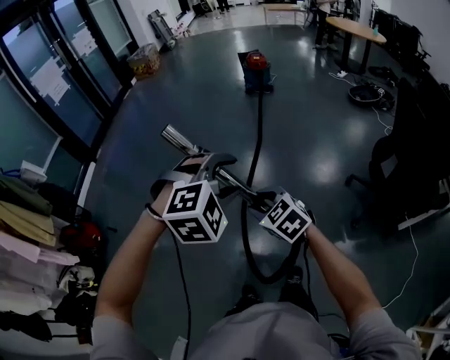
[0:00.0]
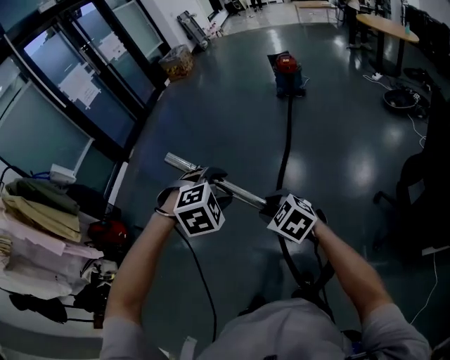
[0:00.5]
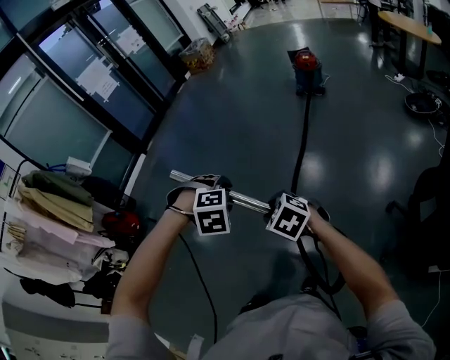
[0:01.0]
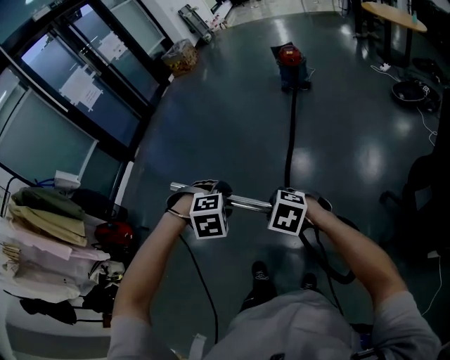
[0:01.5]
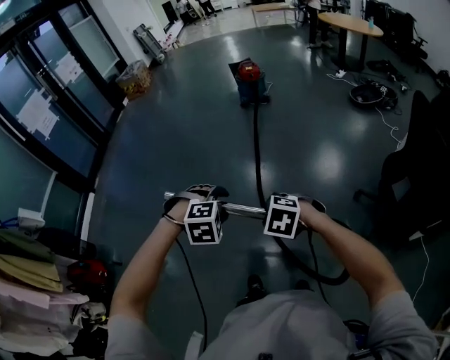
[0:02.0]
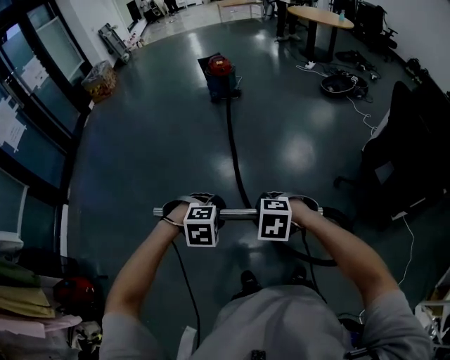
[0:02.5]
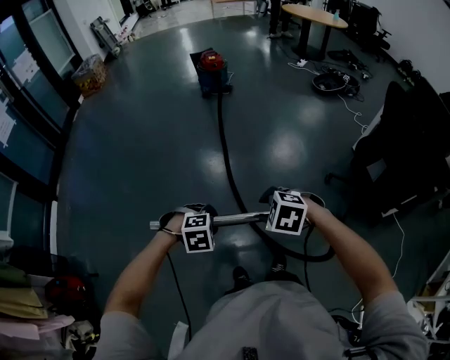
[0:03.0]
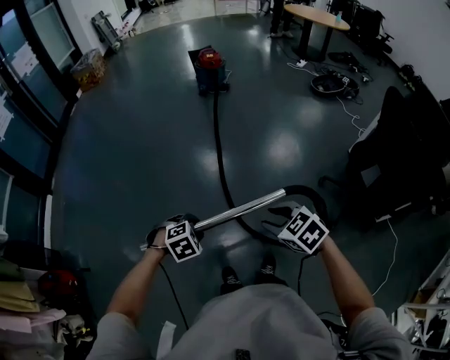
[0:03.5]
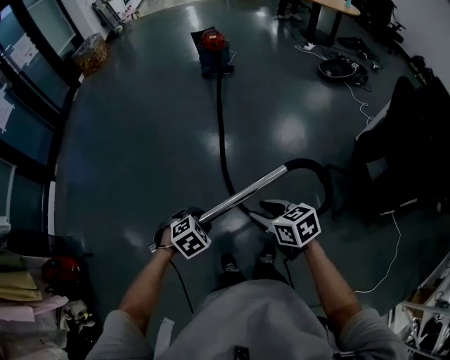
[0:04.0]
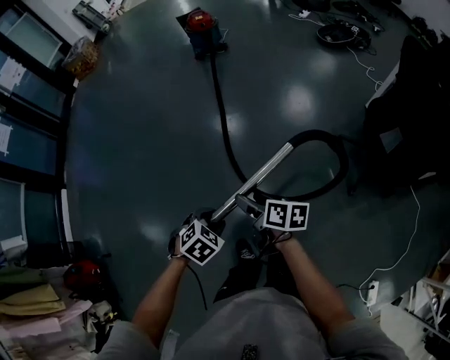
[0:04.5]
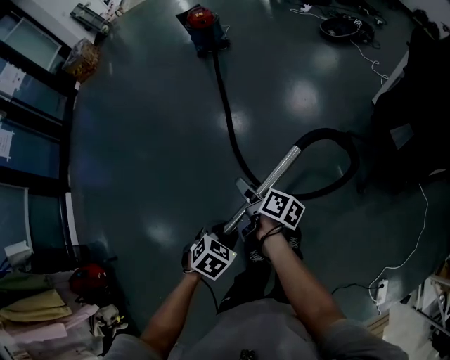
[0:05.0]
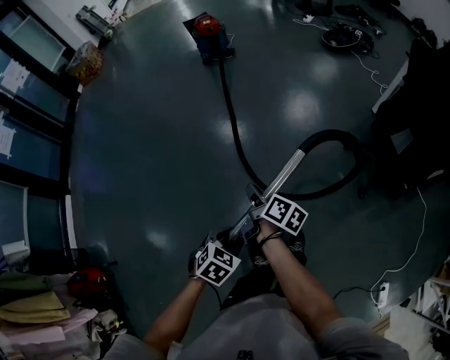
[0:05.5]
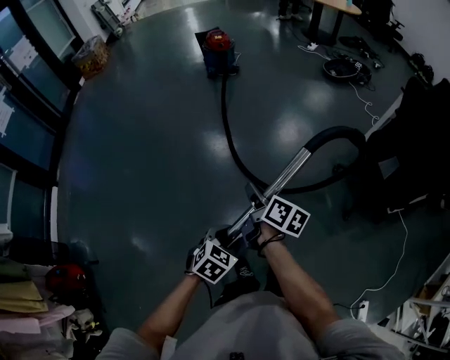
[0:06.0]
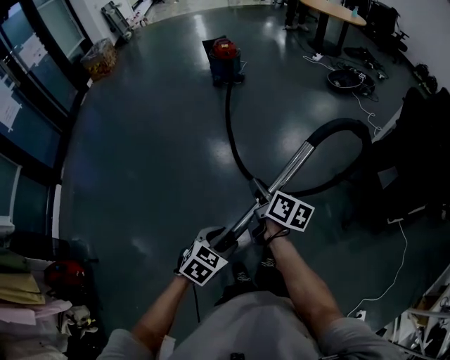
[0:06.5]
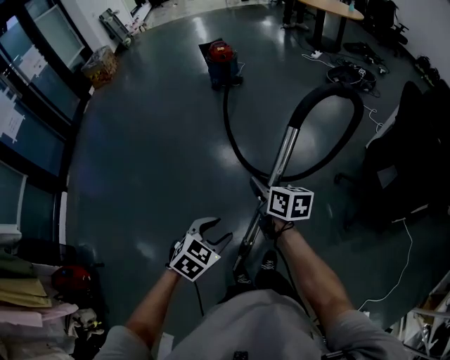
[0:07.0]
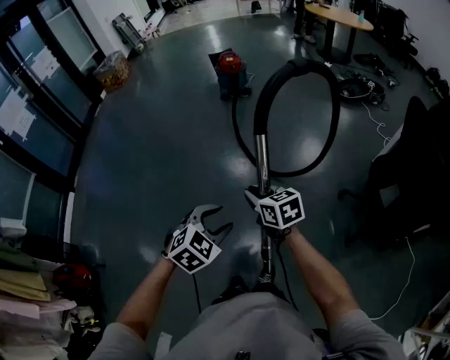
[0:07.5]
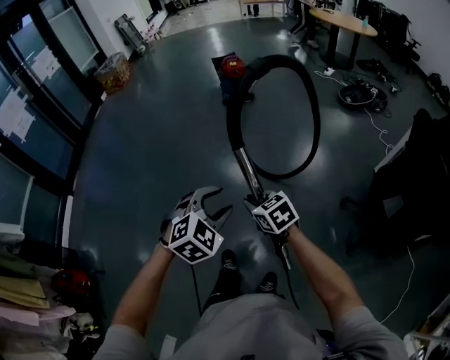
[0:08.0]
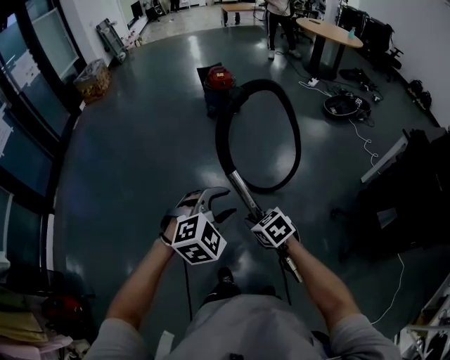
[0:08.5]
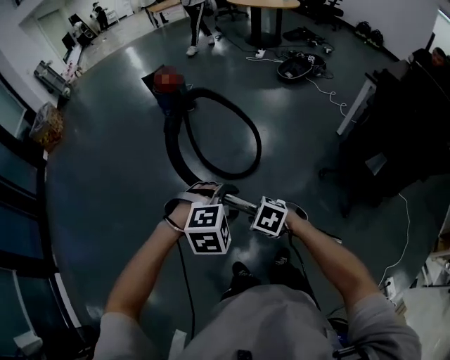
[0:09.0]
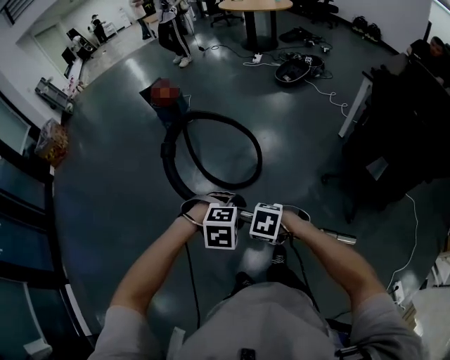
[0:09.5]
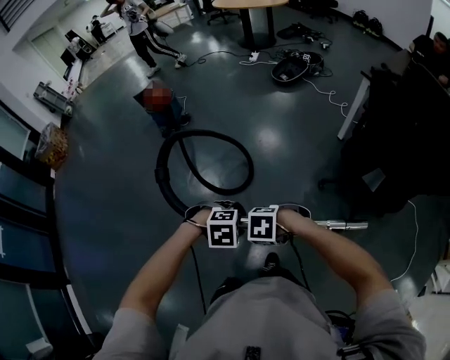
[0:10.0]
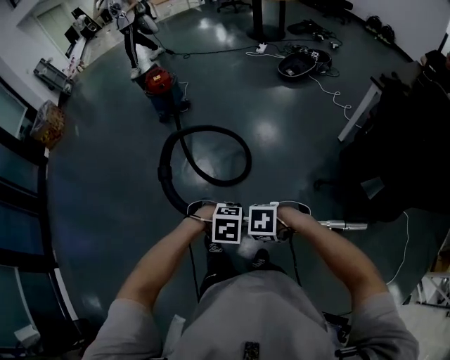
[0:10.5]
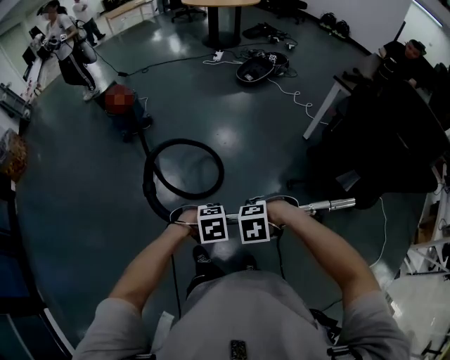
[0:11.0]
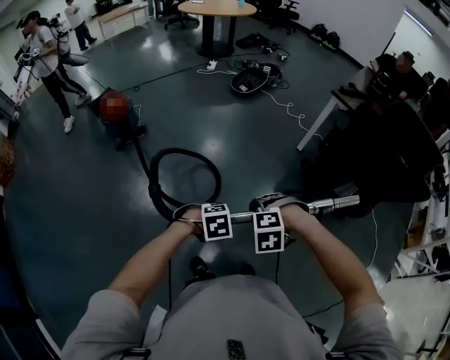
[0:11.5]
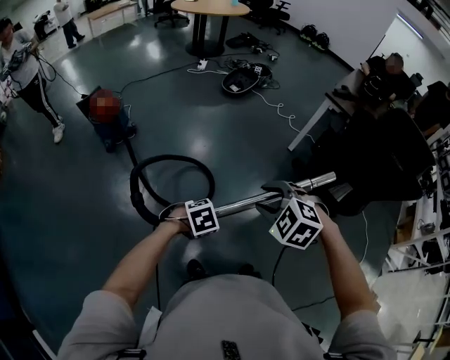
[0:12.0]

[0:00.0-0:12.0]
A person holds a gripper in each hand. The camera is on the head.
0:00.0 to 0:02.0: The right gripper ends up approximately 20 cm from where it was, and rotates about 30 degrees. The left gripper ends up roughly 30 cm from where it was, and turns by about 20 degrees.
0:02.0 to 0:04.0: The right gripper ends up about 5 cm from where it was, and twists roughly 50 degrees clockwise, seen from behind. The left gripper heads downward, covering roughly 15 cm, and changes its angle by roughly 30 degrees.
0:04.0 to 0:06.0: The right gripper is displaced to the left and forward by roughly 10 cm, travels downward and back again, roughly 10 cm each way, rotates around the line of its fingers by about 40 degrees, clockwise from behind, and closes its fingers; the left gripper swivels approximately 20 degrees.
0:06.0 to 0:08.0: The right gripper shifts about 10 cm forward, and rolls counterclockwise, seen from behind, by some 60 degrees; the left gripper goes approximately 25 cm forward and upward, and rotates about 30 degrees.
0:08.0 to 0:10.0: The right gripper shifts by some 15 cm, and points its fingers about 40 degrees further downward; the left gripper changes place by approximately 25 cm, and tilts its fingers roughly 30 degrees downward.
0:10.0 to 0:12.0: The left gripper changes place by about 20 cm, and closes, while the right gripper shifts by about 25 cm, changes its angle by roughly 40 degrees, and opens its fingers.

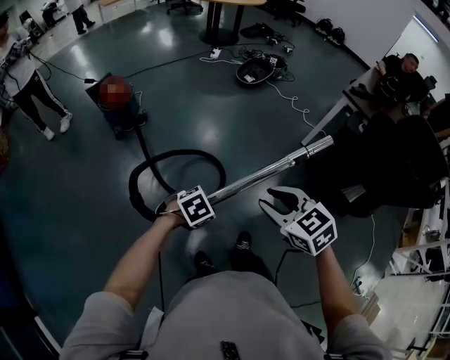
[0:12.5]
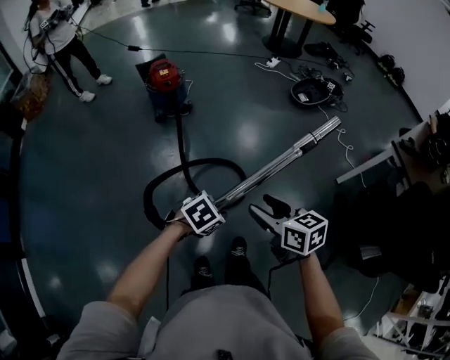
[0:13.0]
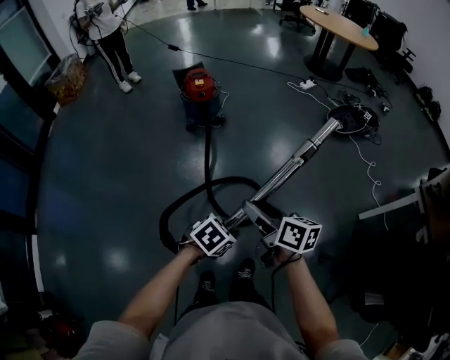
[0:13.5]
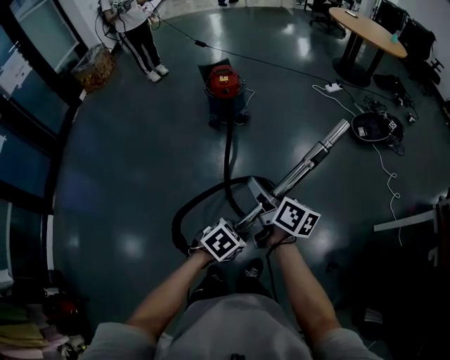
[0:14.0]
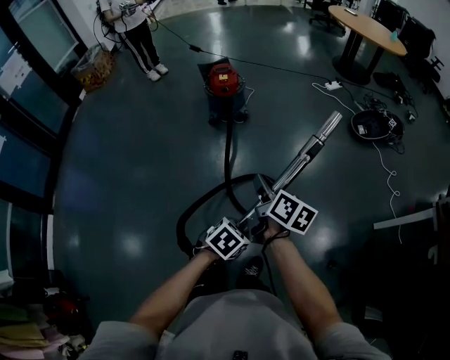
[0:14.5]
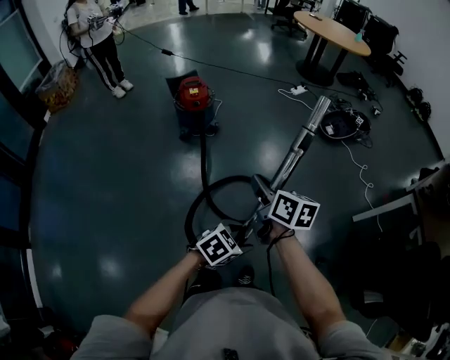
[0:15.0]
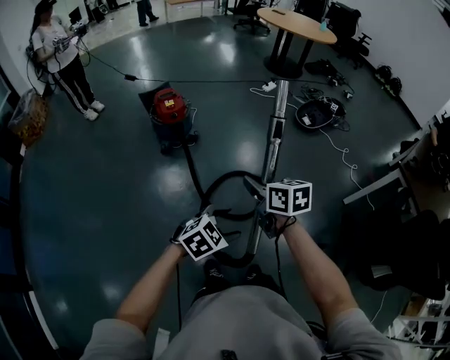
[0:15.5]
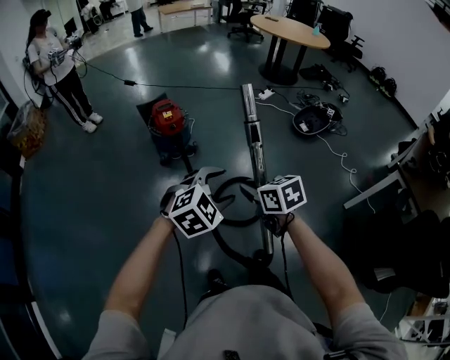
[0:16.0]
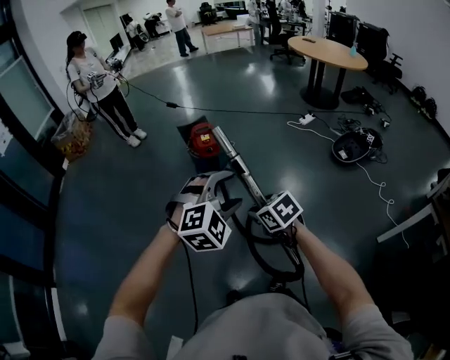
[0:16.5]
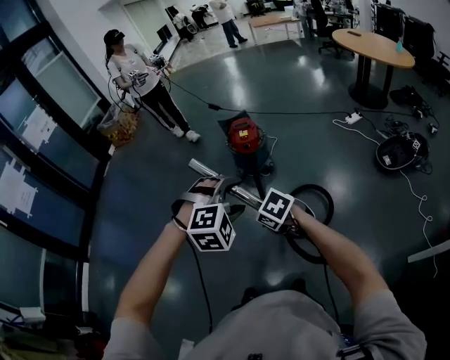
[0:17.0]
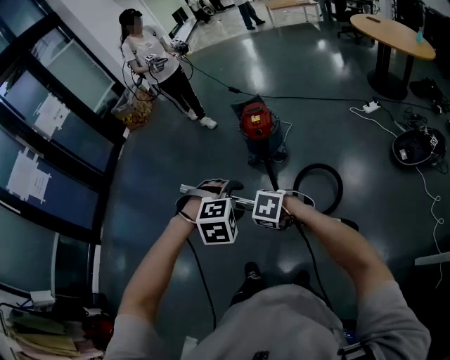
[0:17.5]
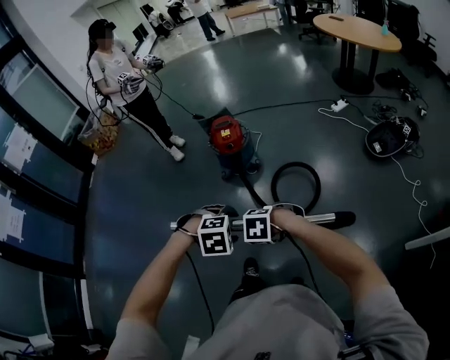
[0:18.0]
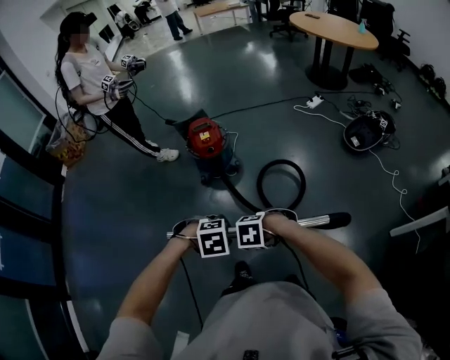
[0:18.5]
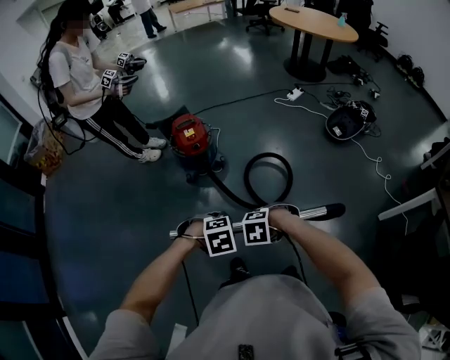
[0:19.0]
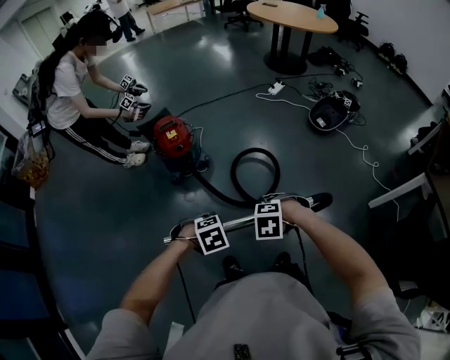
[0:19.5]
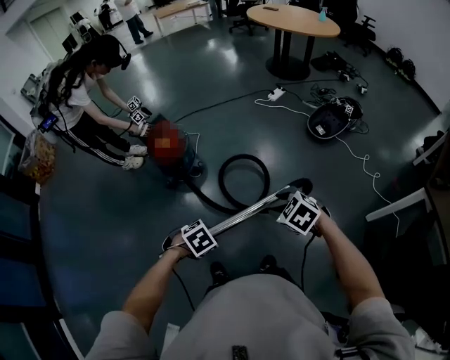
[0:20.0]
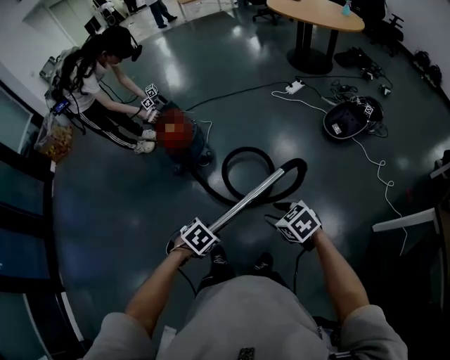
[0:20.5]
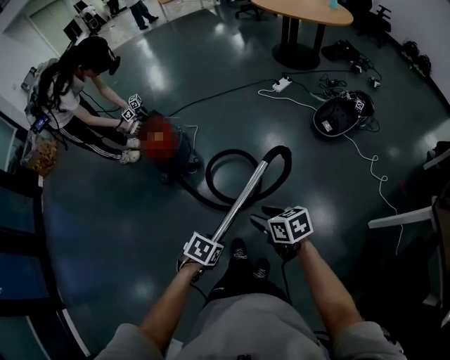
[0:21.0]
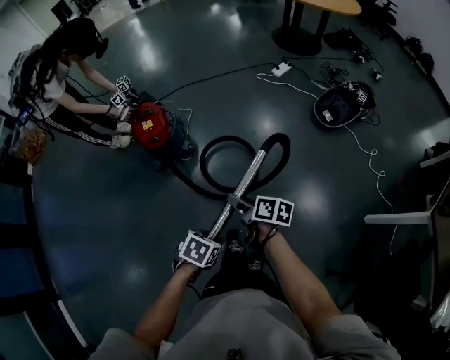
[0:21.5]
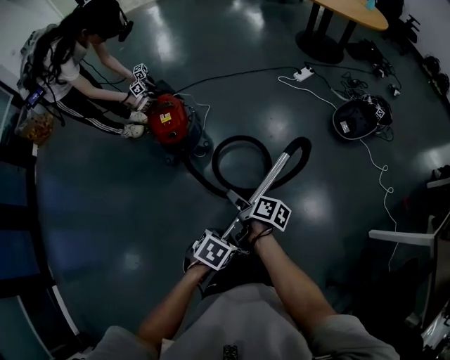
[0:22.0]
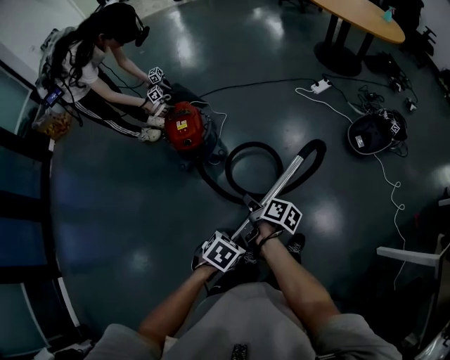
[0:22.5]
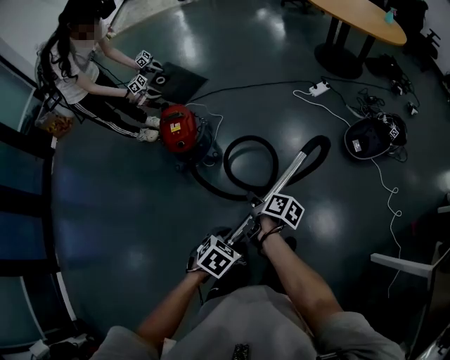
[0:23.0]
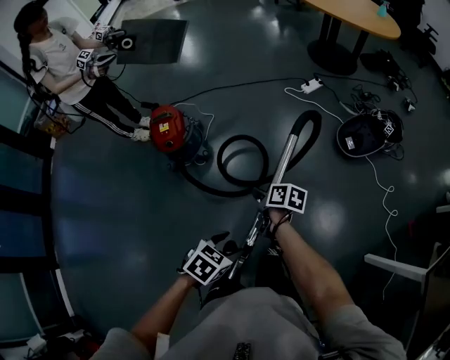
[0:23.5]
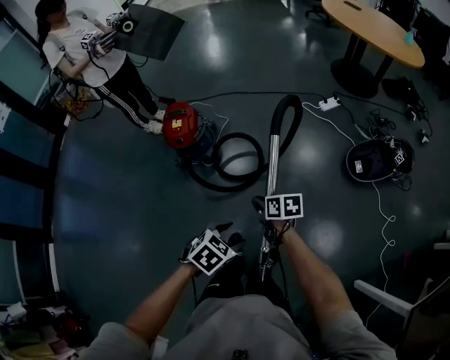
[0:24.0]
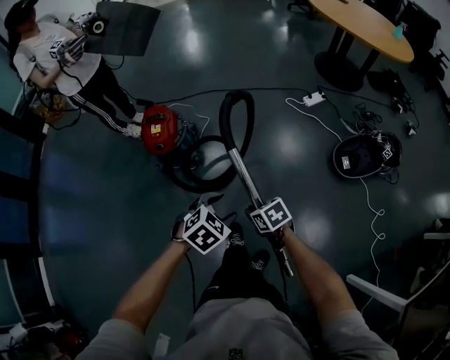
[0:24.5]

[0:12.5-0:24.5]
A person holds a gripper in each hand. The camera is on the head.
0:12.5 to 0:14.5: The right gripper shifts by about 30 cm, rolls clockwise, seen from behind, by roughly 50 degrees, and opens and closes again. The left gripper ends up about 10 cm from where it was, and twists roughly 50 degrees counterclockwise, seen from behind.
0:14.5 to 0:16.5: The right gripper changes place by some 15 cm, and swivels roughly 60 degrees. The left gripper shifts by about 35 cm, rotates around the line of its fingers by roughly 60 degrees, clockwise from behind, and opens its fingers.
0:16.5 to 0:18.5: The left gripper travels downward by approximately 20 cm, tips its fingers downward by roughly 40 degrees, and closes. Meanwhile the right gripper is displaced downward by about 10 cm, and points its fingers approximately 30 degrees further downward.
0:18.5 to 0:20.5: The right gripper ends up approximately 30 cm from where it was, rotates approximately 60 degrees, and opens its fingers, while the left gripper shifts by approximately 15 cm, and swivels about 40 degrees.
0:20.5 to 0:22.5: The right gripper moves about 25 cm, rolls clockwise, seen from behind, by roughly 80 degrees, and closes up; the left gripper changes place by about 15 cm.
0:22.5 to 0:24.5: The right gripper moves about 20 cm, and twists about 70 degrees counterclockwise, seen from behind, while the left gripper moves roughly 25 cm, changes its angle by roughly 20 degrees, and opens its fingers.

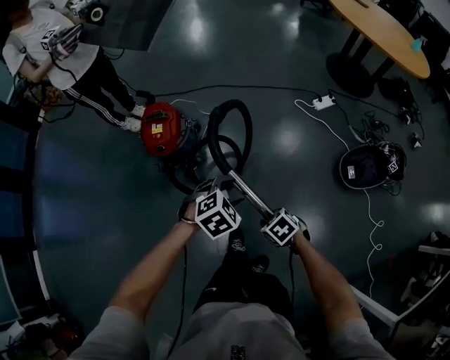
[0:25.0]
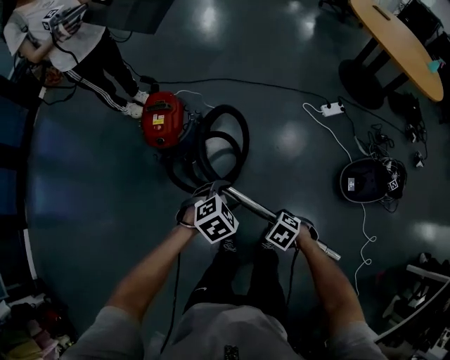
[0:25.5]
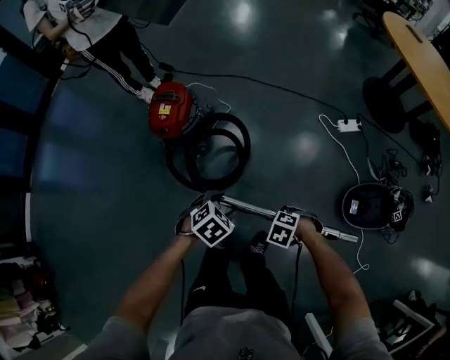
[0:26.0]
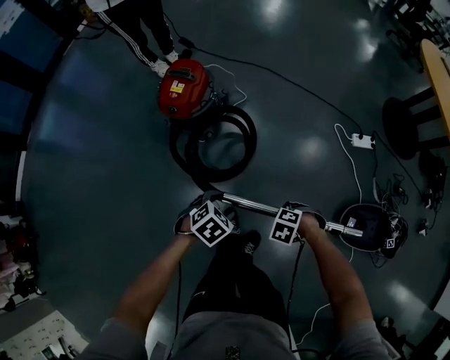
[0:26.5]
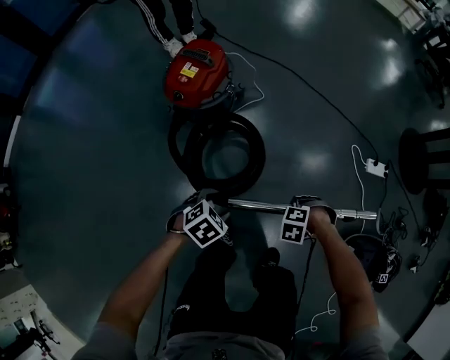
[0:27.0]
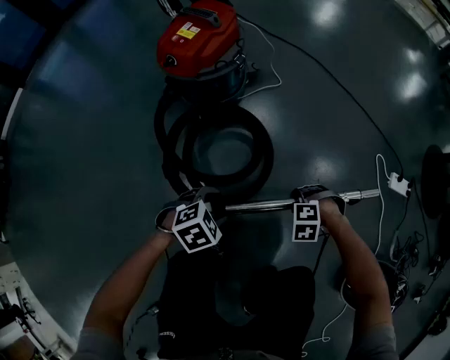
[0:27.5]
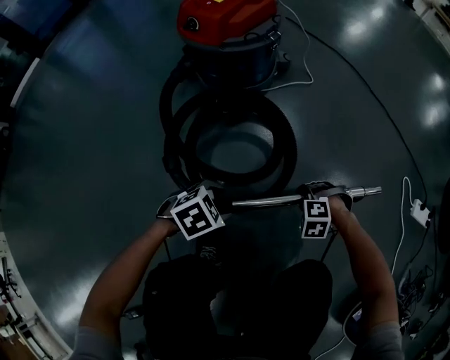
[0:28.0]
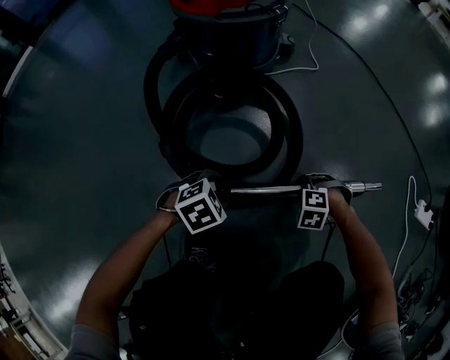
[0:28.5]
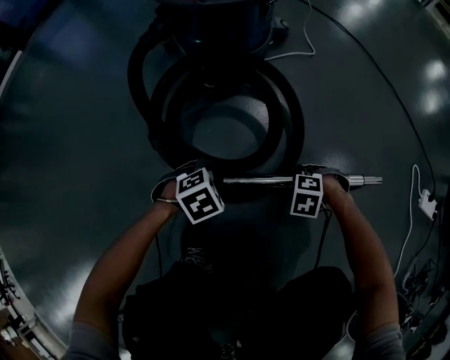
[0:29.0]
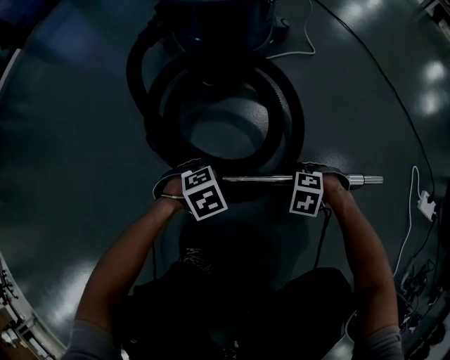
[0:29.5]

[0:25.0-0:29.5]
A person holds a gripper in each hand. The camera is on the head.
0:25.0 to 0:27.0: The left gripper shifts about 25 cm downward, and rotates around the line of its fingers by some 40 degrees, counterclockwise from behind; the right gripper changes place by about 35 cm, and rotates around the line of its fingers by about 80 degrees, counterclockwise from behind.
0:27.0 to 0:29.5: The two grippers go approximately 40 cm downward.
